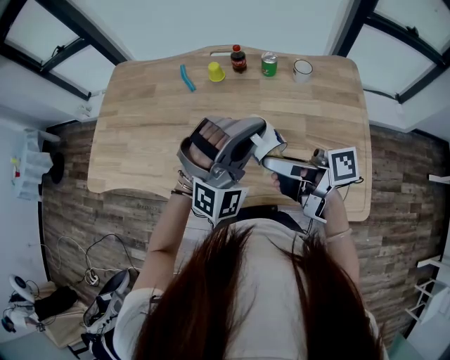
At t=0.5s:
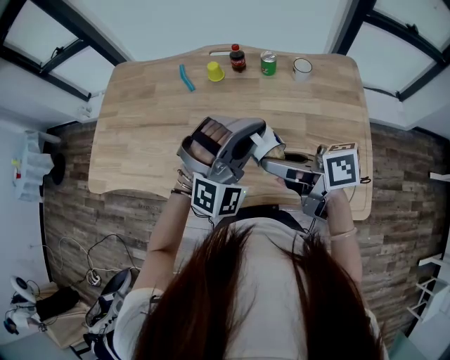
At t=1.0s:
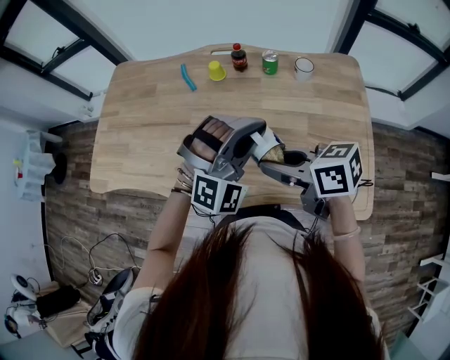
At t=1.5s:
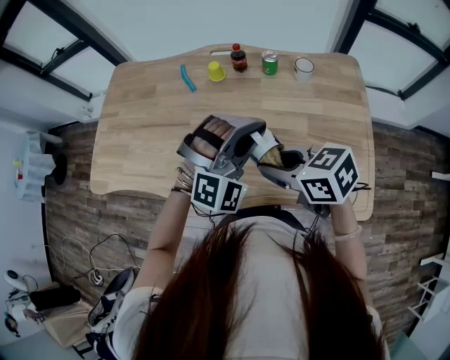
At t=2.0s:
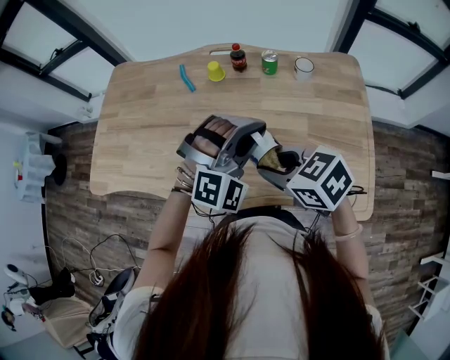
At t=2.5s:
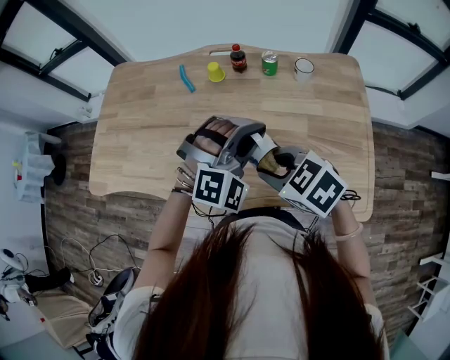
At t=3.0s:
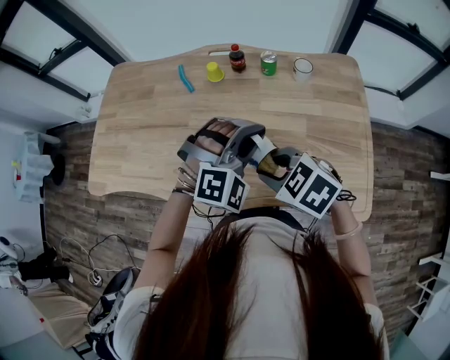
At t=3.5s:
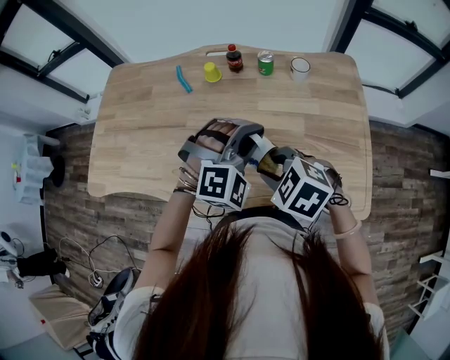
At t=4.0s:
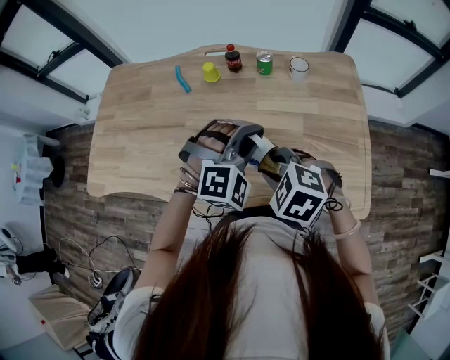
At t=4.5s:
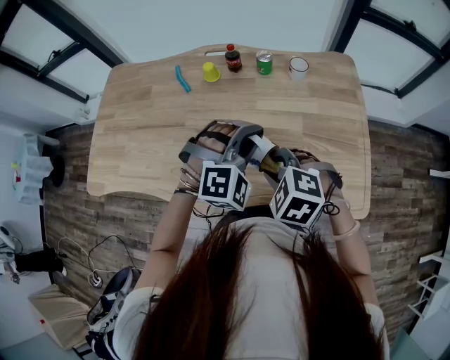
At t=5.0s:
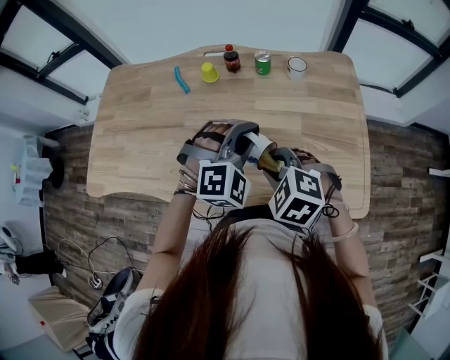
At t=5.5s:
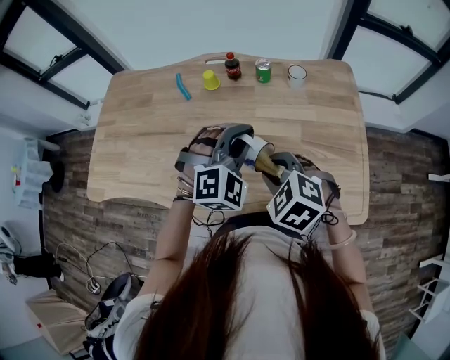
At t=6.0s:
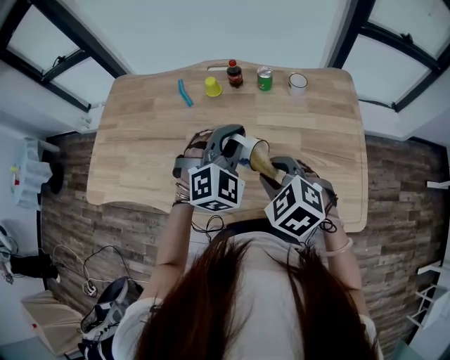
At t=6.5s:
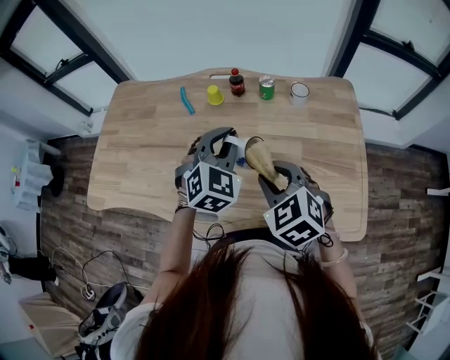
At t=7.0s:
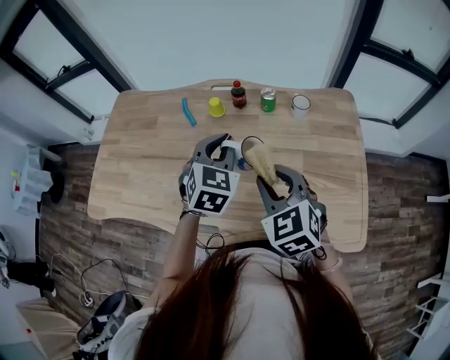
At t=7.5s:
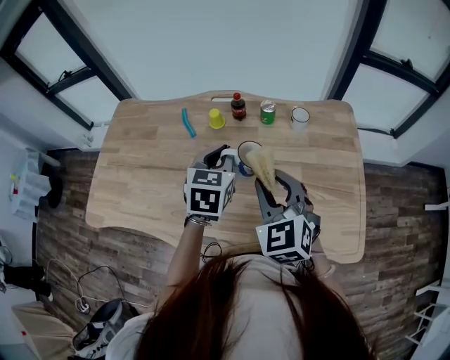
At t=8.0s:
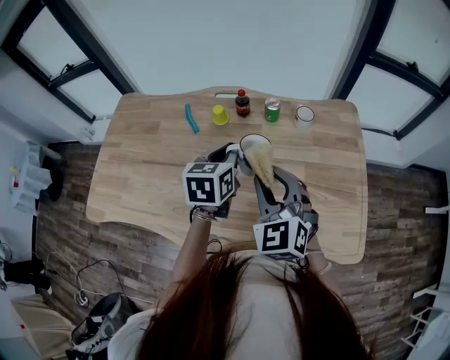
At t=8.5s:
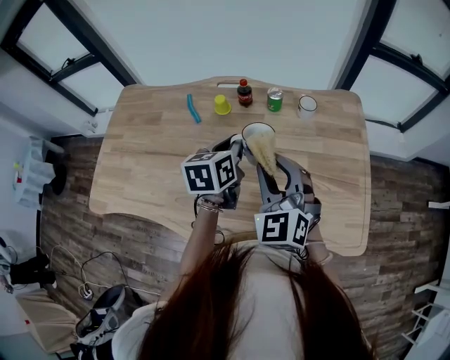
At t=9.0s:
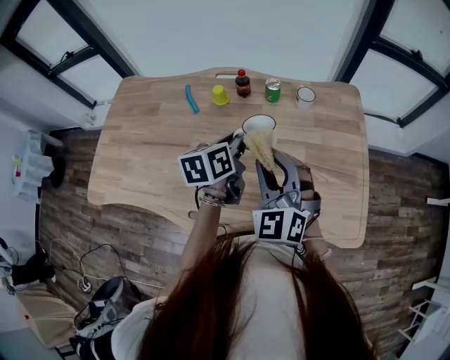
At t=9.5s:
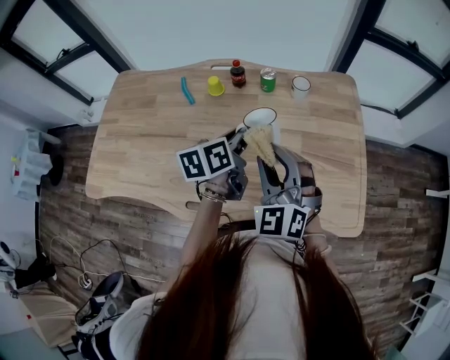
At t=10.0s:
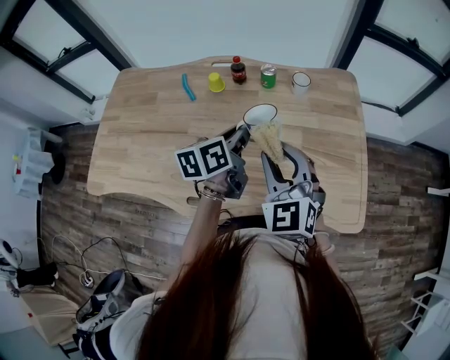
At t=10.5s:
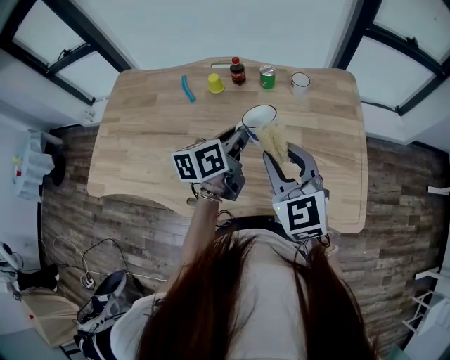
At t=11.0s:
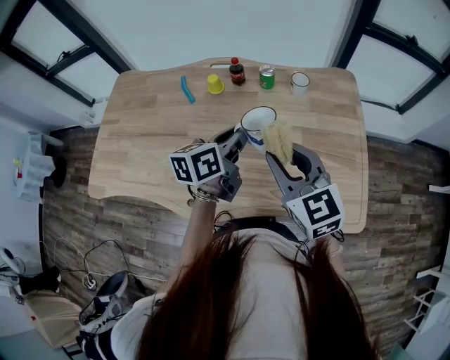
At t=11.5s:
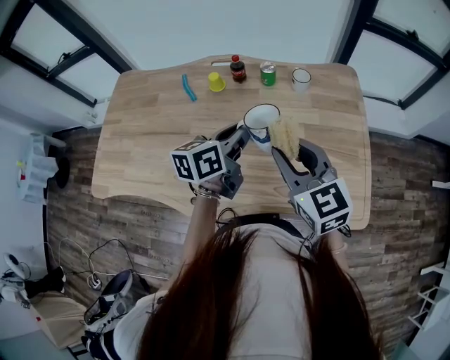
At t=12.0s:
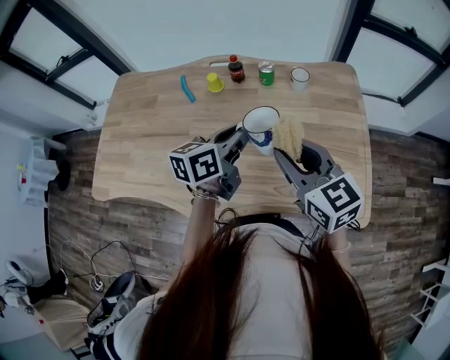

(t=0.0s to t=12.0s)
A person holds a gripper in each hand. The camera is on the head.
t=0.0s - t=2.0s: The right gripper tips its fingers downward by some 40 degrees.
t=2.0s - t=4.0s: The right gripper moves some 5 cm, and turns by some 40 degrees.
t=4.0s - t=6.0s: The left gripper ends up roughly 5 cm from where it was, and changes its angle by roughly 20 degrees.
t=6.0s - t=8.0s: The right gripper travels forward and upward by approximately 10 cm, and tips its fingers upward by some 30 degrees, while the left gripper travels forward by about 5 cm, and rotates around the line of its fingers by approximately 70 degrees, counterclockwise from behind.
t=8.0s - t=10.0s: The right gripper ends up roughly 5 cm from where it was. Meanwhile the left gripper is displaced to the right by approximately 5 cm, and swivels approximately 30 degrees.
t=10.0s - t=12.0s: The right gripper swivels roughly 40 degrees.

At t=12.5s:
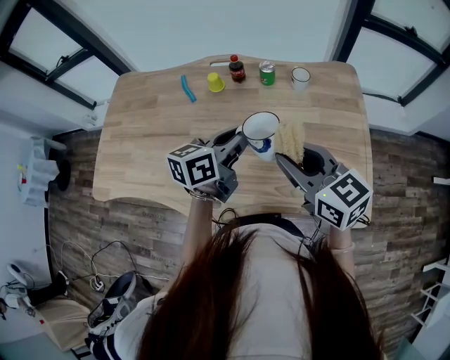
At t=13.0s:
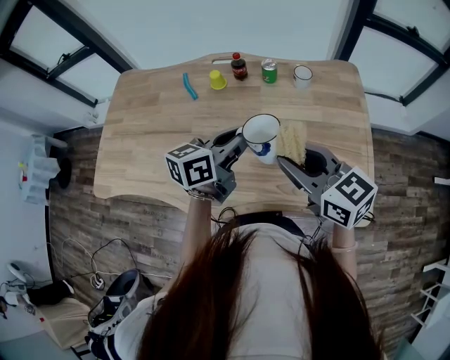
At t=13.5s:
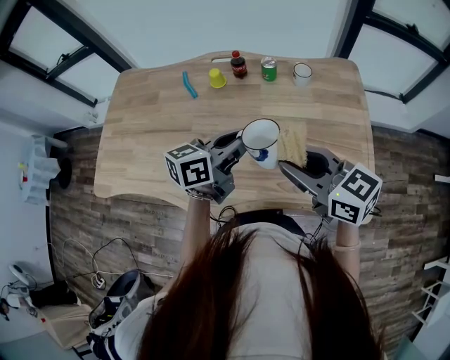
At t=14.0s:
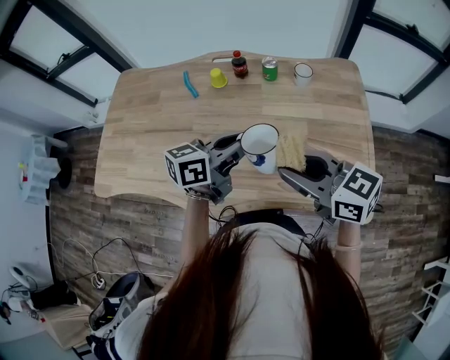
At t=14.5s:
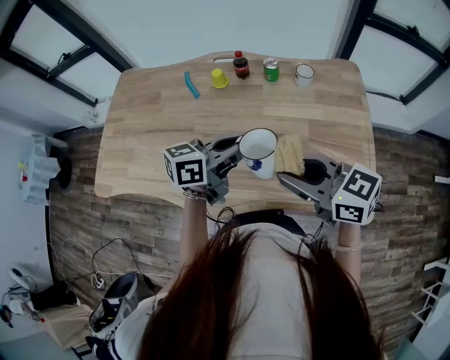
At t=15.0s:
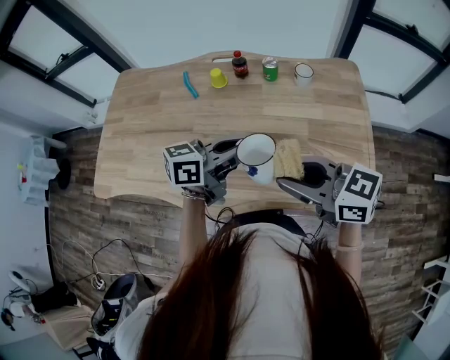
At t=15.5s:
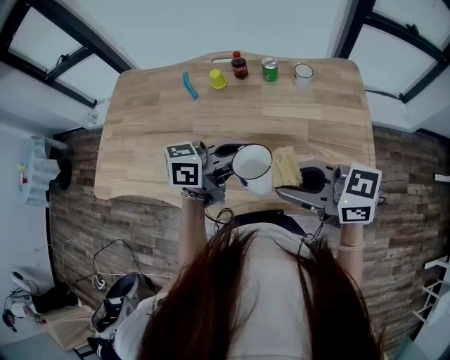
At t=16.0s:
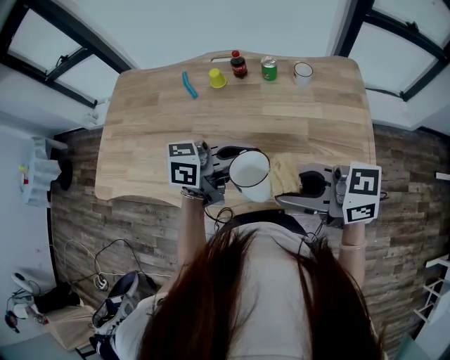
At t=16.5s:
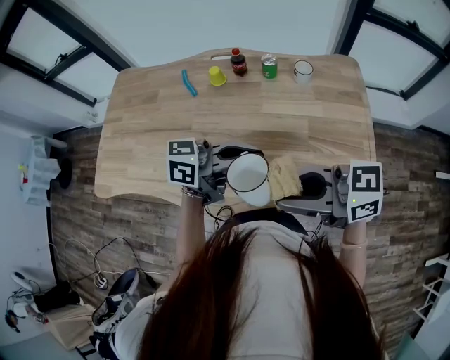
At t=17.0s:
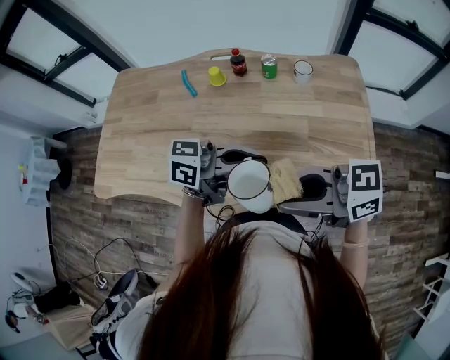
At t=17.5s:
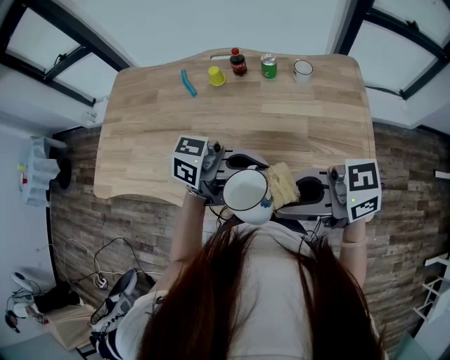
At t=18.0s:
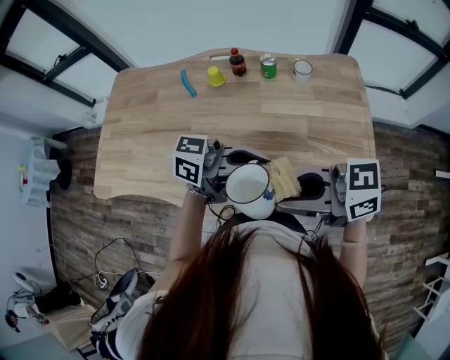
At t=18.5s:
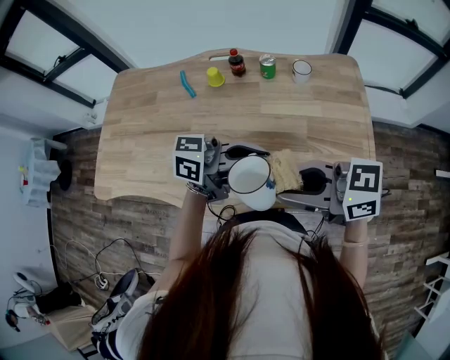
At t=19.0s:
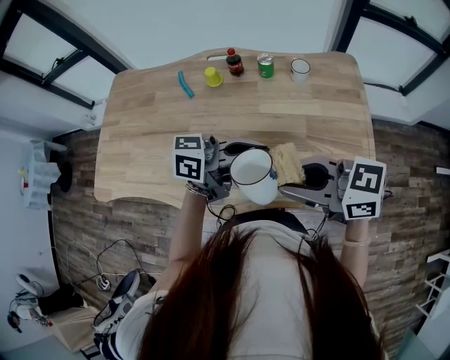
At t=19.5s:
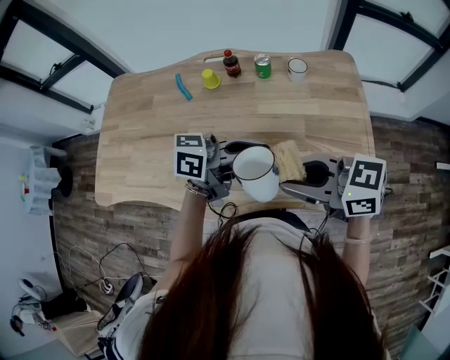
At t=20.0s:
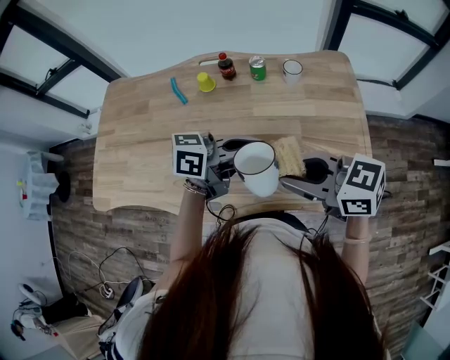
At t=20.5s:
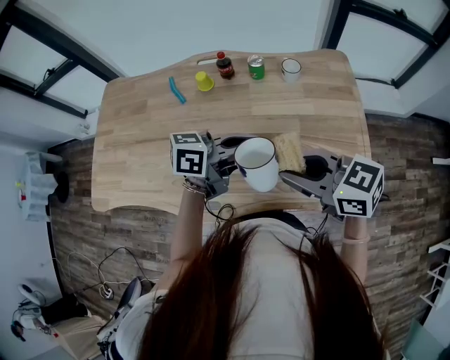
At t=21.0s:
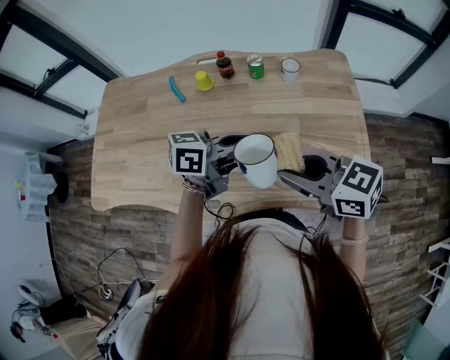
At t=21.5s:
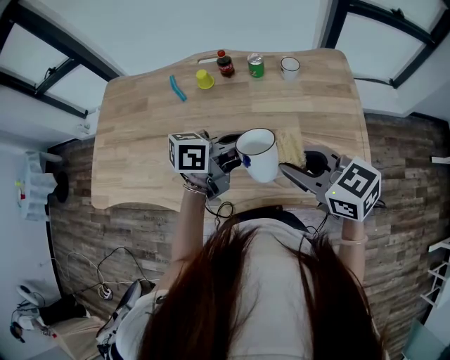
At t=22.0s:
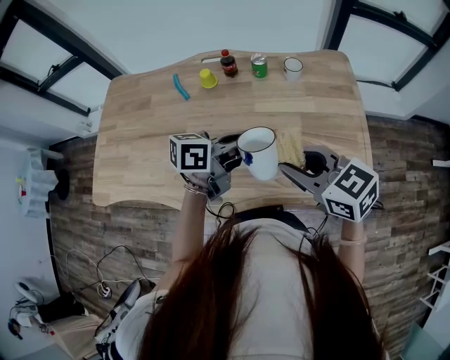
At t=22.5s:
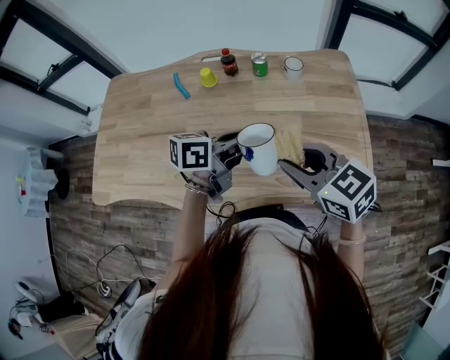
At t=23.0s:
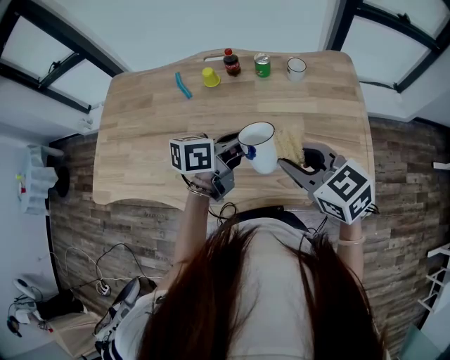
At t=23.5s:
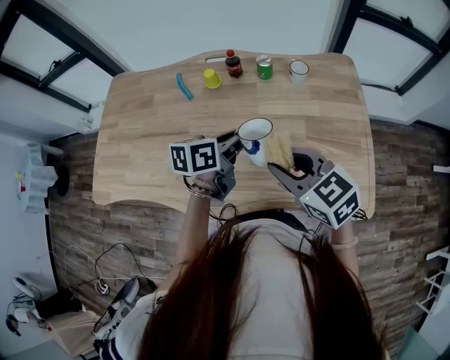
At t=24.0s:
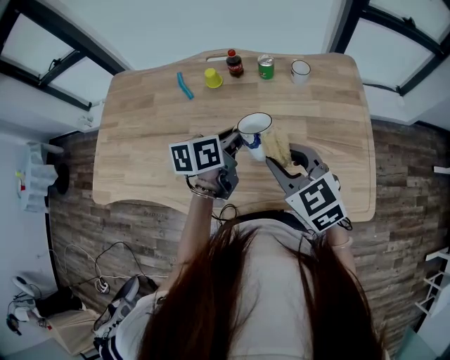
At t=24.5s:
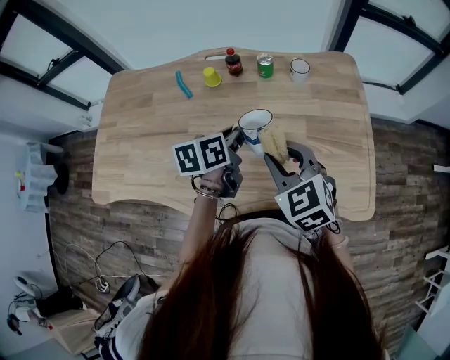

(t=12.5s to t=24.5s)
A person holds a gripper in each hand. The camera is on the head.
t=12.5s - t=14.5s: The right gripper shifts by roughly 5 cm.
t=14.5s - t=16.5s: The left gripper moves about 5 cm, and rotates approximately 20 degrees. Meanwhile the right gripper ends up roughly 5 cm from where it was, and turns by approximately 20 degrees.
t=16.5s - t=18.5s: The grippers move only a little.
t=18.5s - t=20.5s: The left gripper ends up some 5 cm from where it was, while the right gripper ends up some 5 cm from where it was, and rotates some 20 degrees.
t=20.5s - t=22.5s: The grippers move only a little.
t=22.5s - t=24.5s: The left gripper heads forward and to the left, covering approximately 5 cm, and changes its angle by approximately 30 degrees; the right gripper ends up some 5 cm from where it was, and rotates approximately 20 degrees.

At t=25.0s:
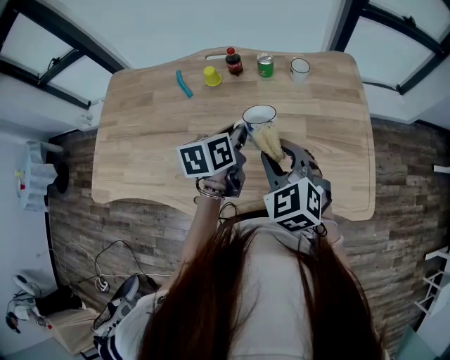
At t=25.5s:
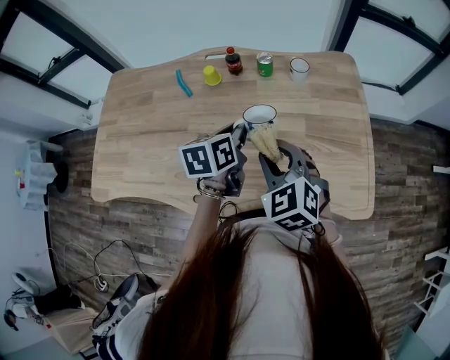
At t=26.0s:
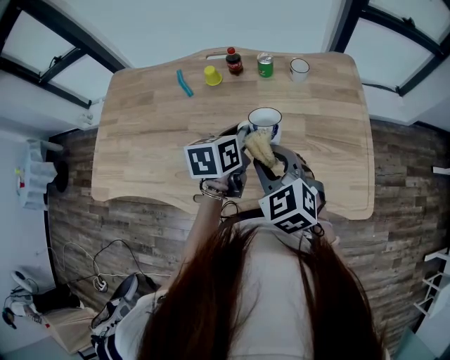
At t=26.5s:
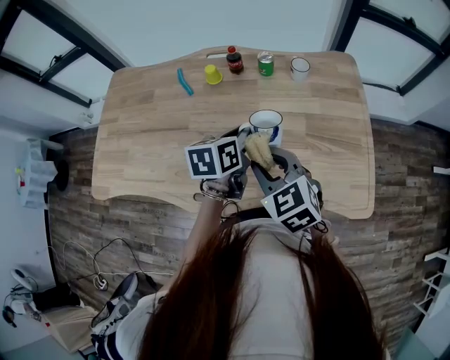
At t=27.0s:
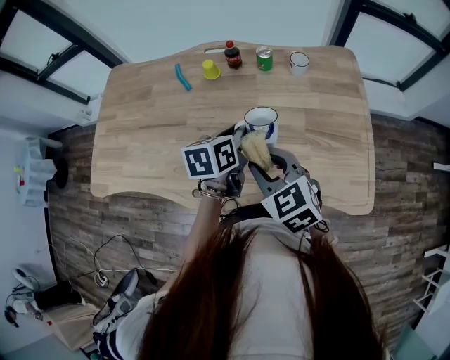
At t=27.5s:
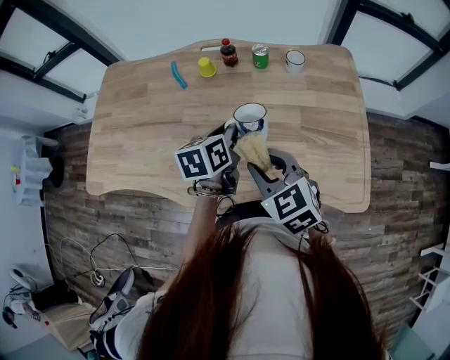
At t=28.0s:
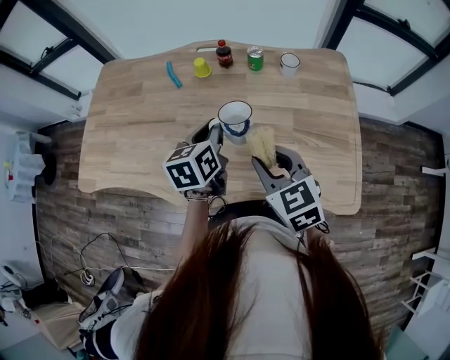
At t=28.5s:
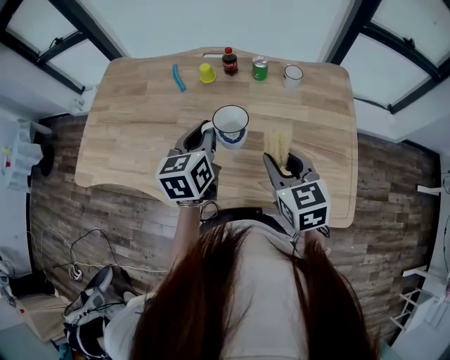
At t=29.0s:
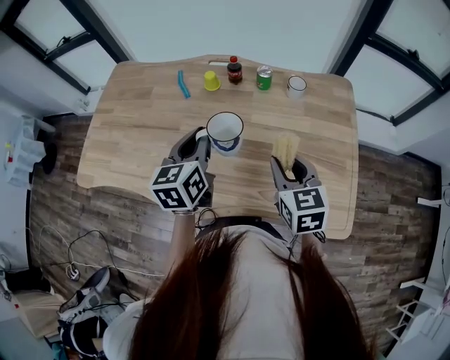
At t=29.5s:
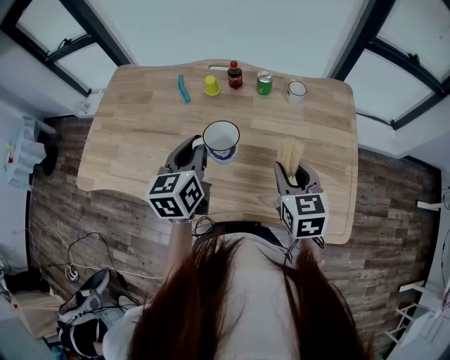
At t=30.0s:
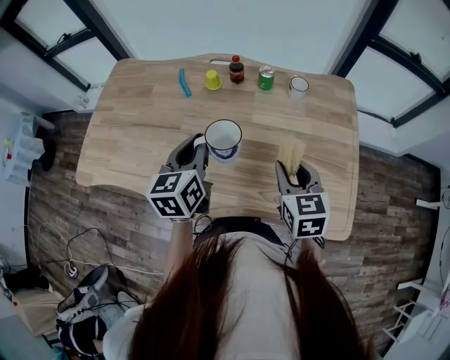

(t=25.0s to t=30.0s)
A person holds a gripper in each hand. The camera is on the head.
t=25.0s - t=27.5s: The right gripper moves about 5 cm.
t=27.5s - t=30.0s: The left gripper is displaced upward and to the left by roughly 10 cm, and rotates roughly 20 degrees. Meanwhile the right gripper heads to the right, covering approximately 10 cm, and changes its angle by some 20 degrees.
